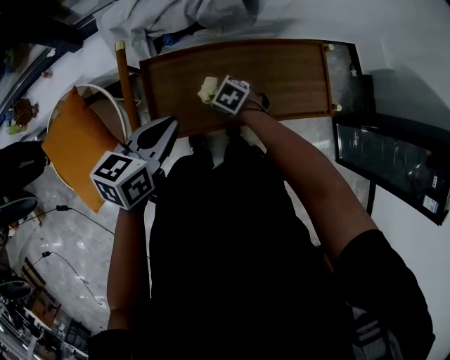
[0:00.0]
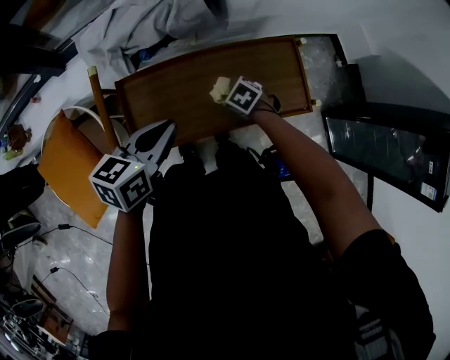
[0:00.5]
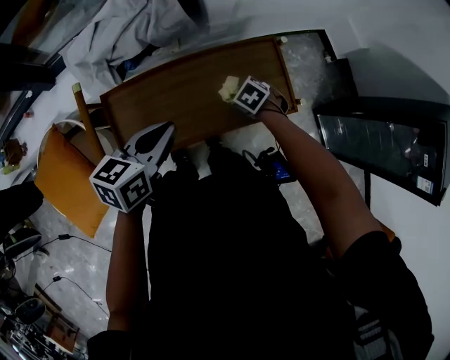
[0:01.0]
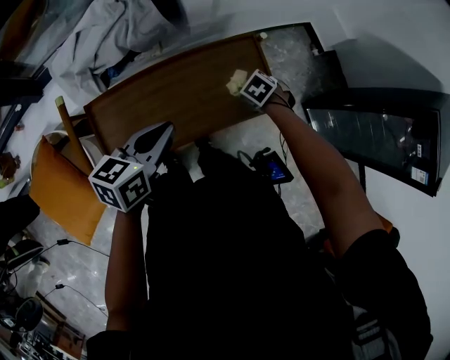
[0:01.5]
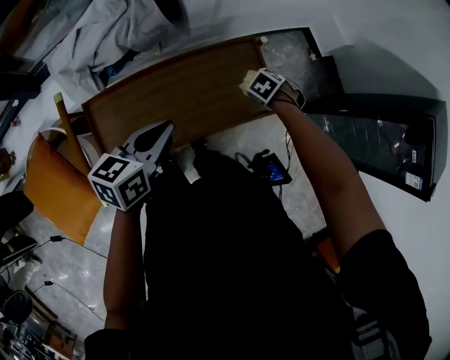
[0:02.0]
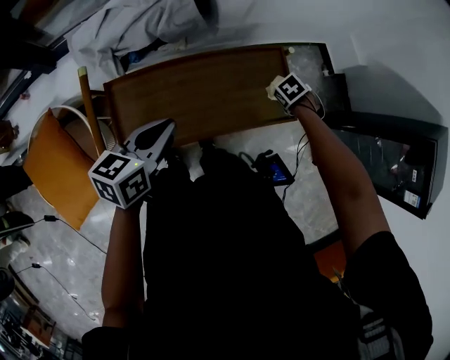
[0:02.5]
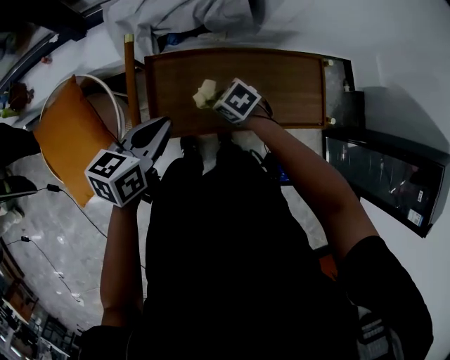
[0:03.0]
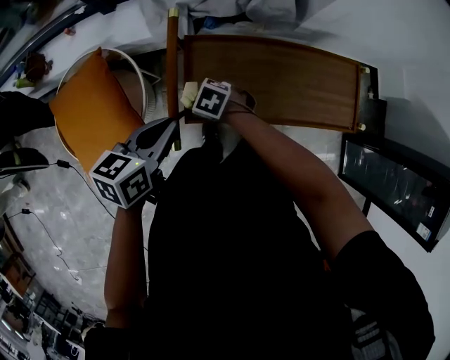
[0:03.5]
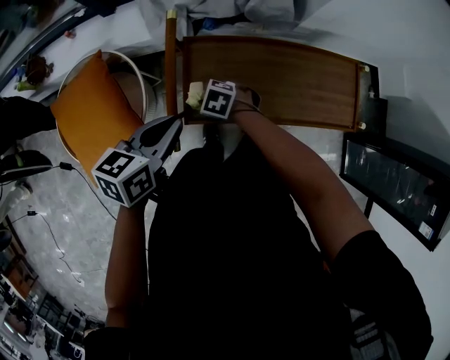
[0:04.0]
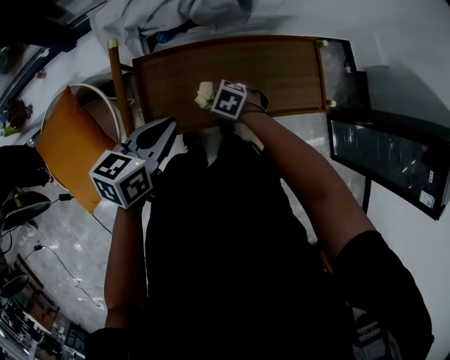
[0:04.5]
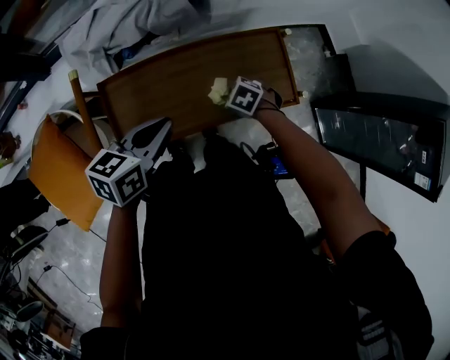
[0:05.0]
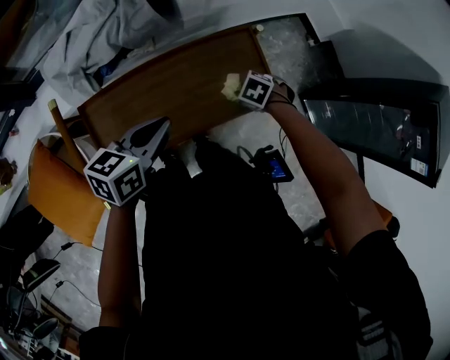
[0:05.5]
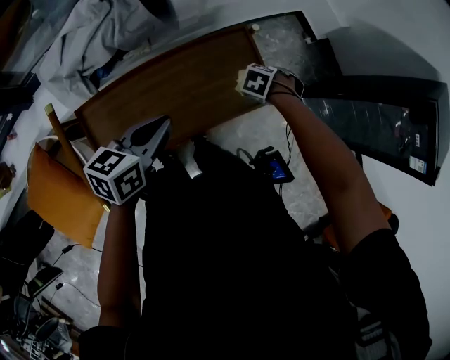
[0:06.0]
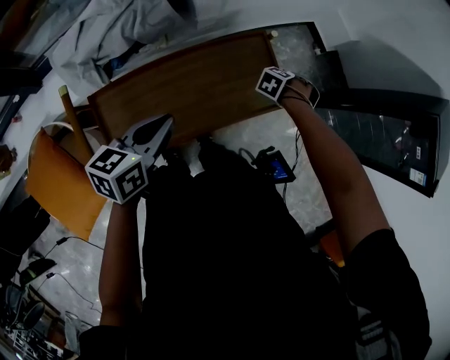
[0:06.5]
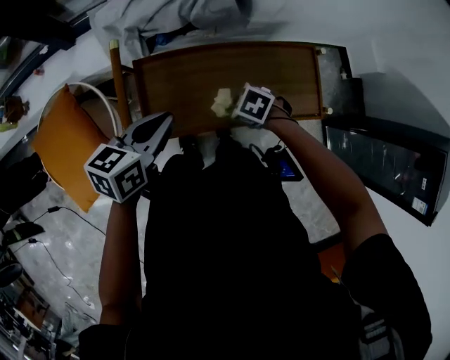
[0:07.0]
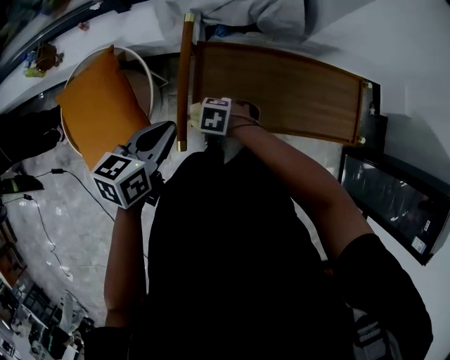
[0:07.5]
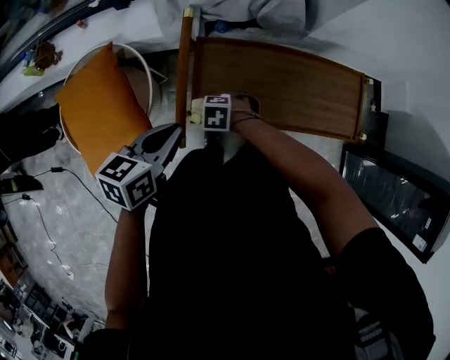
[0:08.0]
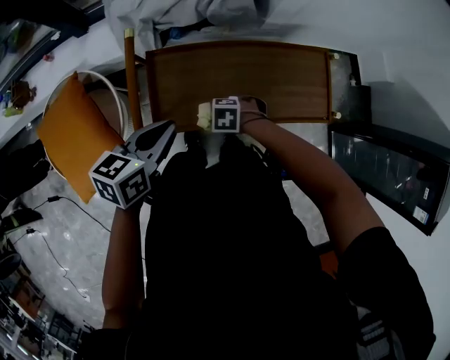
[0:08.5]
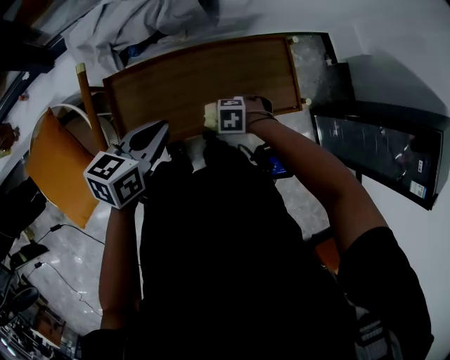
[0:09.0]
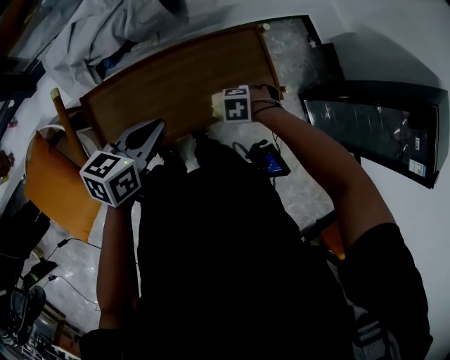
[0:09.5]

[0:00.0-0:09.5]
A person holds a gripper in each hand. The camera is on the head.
0:00.0 to 0:02.0: The right gripper shifts by about 35 cm, and changes its angle by some 20 degrees. Meanwhile the left gripper shifts by some 20 cm.
0:02.0 to 0:04.0: The right gripper shifts by some 50 cm, and rotates some 40 degrees, while the left gripper changes place by roughly 30 cm.
0:04.0 to 0:05.5: The right gripper ends up about 50 cm from where it was, and swivels some 30 degrees, while the left gripper changes place by about 30 cm, and rotates roughly 20 degrees.
0:05.5 to 0:07.5: The right gripper shifts by about 50 cm, and changes its angle by roughly 40 degrees, while the left gripper moves some 30 cm, and rotates roughly 30 degrees.
0:07.5 to 0:09.5: The right gripper shifts by about 40 cm. The left gripper ends up about 30 cm from where it was, and changes its angle by approximately 30 degrees.

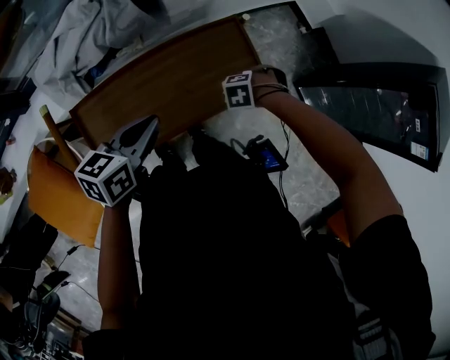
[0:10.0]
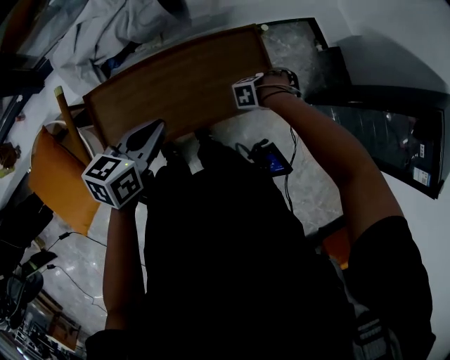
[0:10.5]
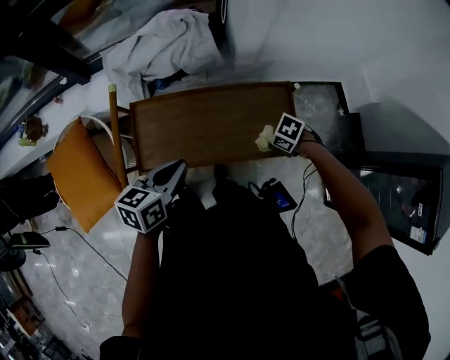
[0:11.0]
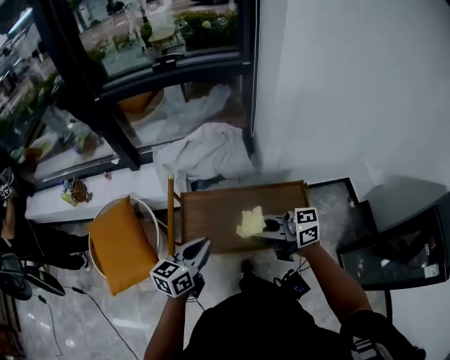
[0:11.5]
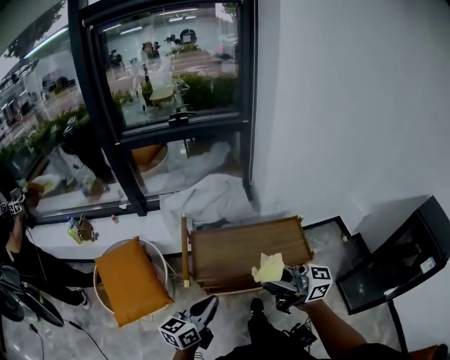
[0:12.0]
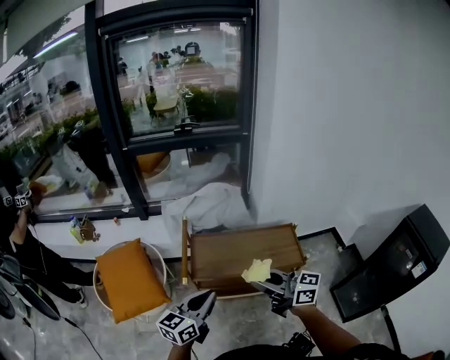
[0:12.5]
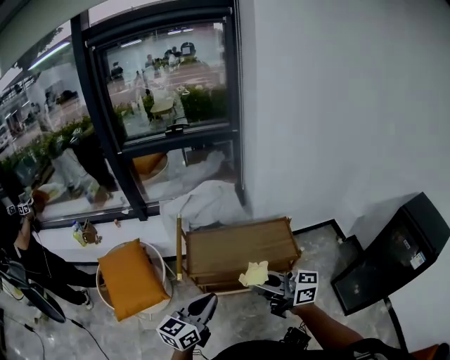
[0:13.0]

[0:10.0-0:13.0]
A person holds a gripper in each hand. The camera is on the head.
0:10.0 to 0:11.5: The right gripper travels upward by some 40 cm, and angles its fingers upward, by roughly 90 degrees. The left gripper moves roughly 20 cm, and changes its angle by some 30 degrees.
0:11.5 to 0:13.0: The grippers both shift backward and upward by about 20 cm.

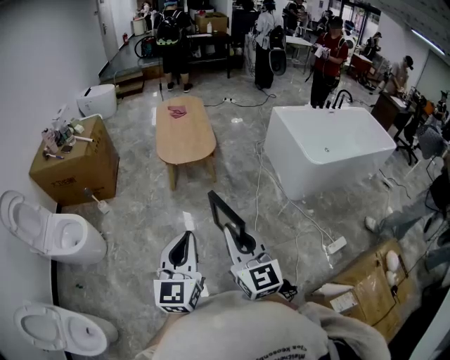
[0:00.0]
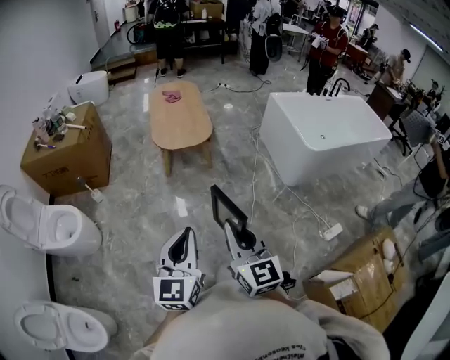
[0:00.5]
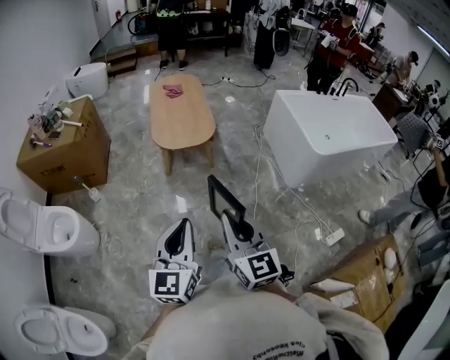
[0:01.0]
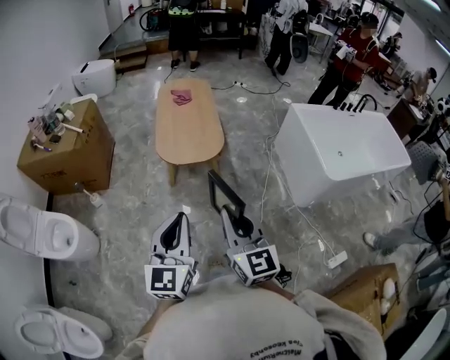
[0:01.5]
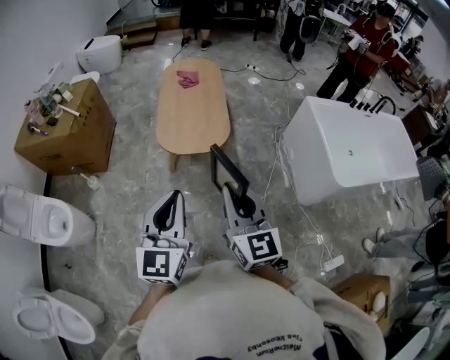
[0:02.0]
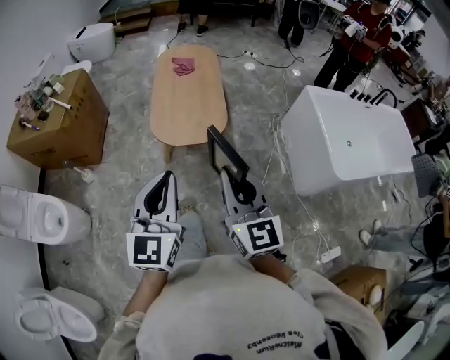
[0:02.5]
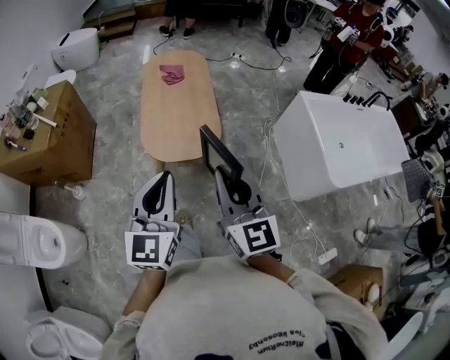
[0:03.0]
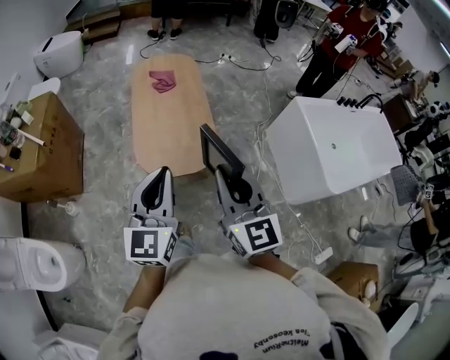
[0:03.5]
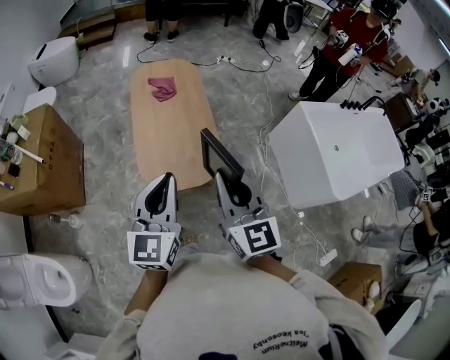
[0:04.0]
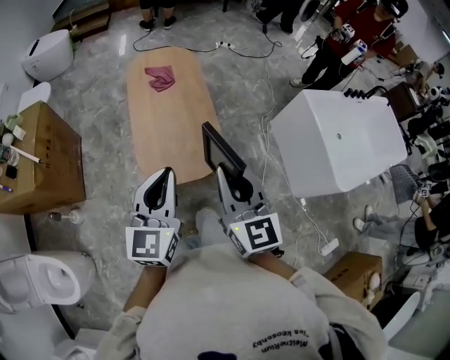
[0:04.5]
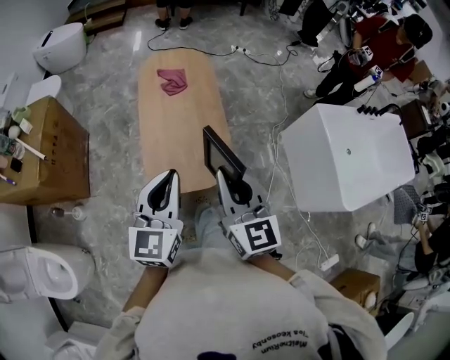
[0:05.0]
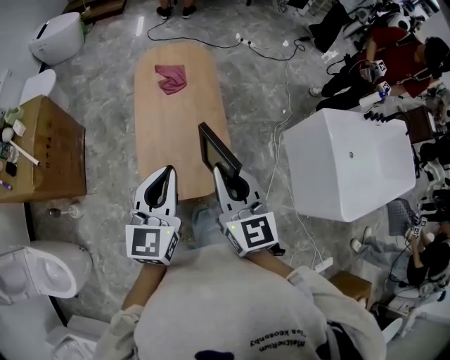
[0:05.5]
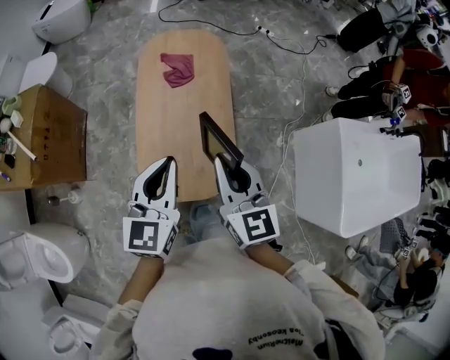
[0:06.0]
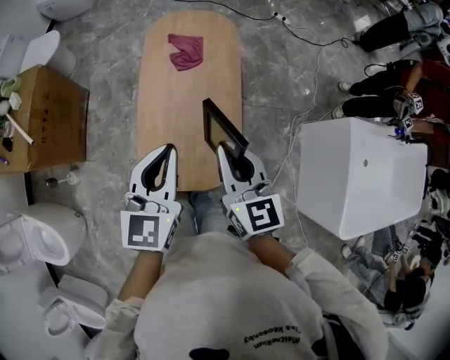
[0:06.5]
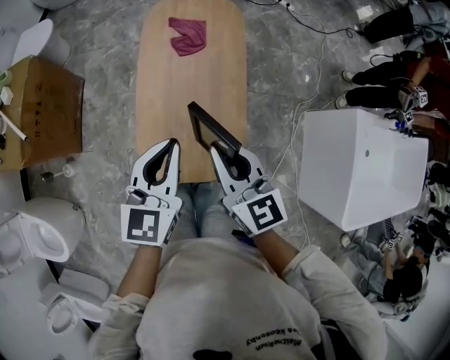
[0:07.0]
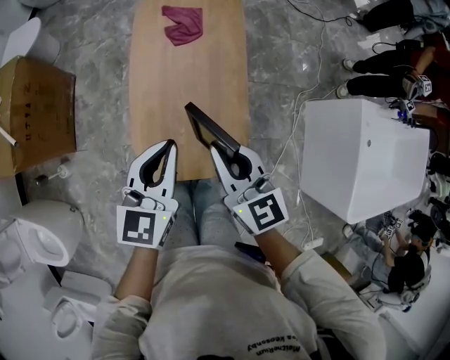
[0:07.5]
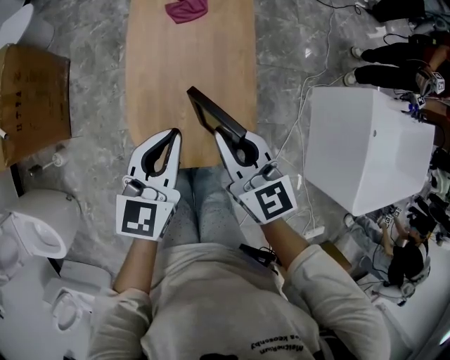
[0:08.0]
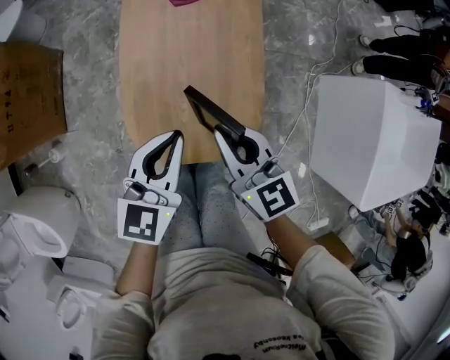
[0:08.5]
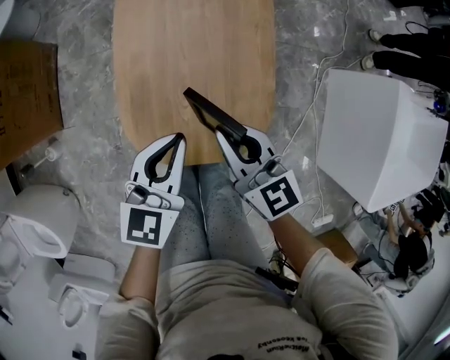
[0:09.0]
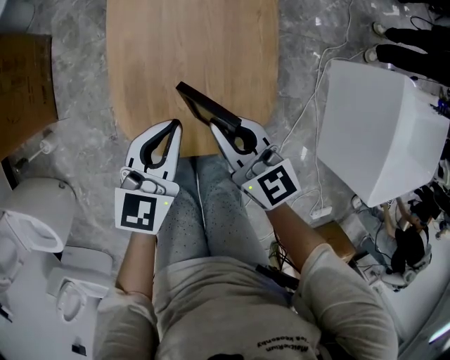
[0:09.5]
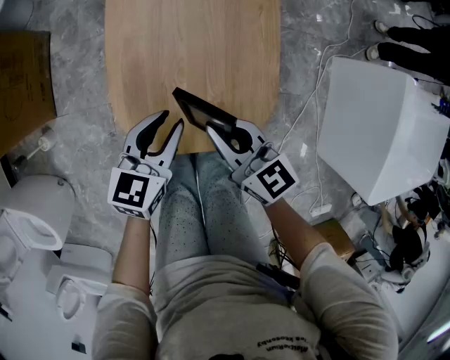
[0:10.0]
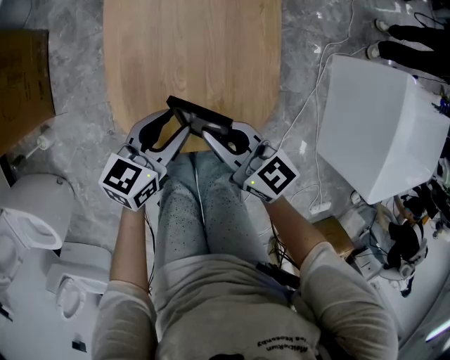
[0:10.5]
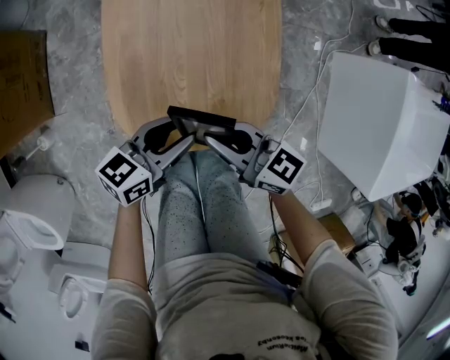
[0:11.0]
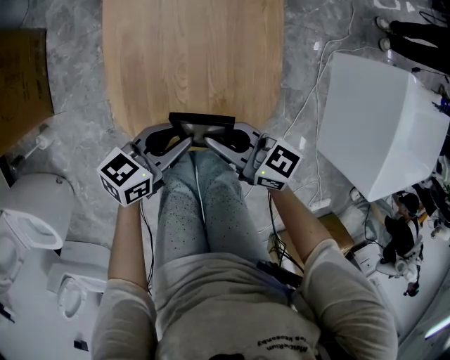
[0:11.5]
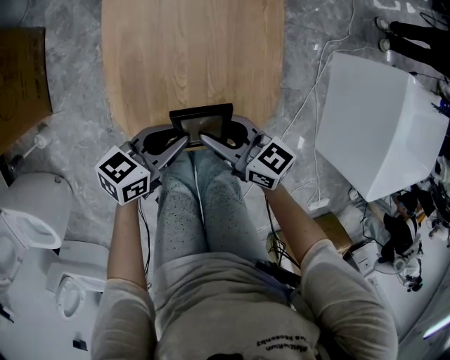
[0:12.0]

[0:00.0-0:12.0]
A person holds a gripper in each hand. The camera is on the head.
0:00.0 to 0:02.0: The grippers both shift forward by approximately 35 cm.
0:02.0 to 0:04.0: The grippers both shift forward by approximately 30 cm.
0:04.0 to 0:06.0: Both grippers travel together forward, some 25 cm.
0:06.0 to 0:08.0: The grippers both shift downward by roughly 15 cm.
0:08.0 to 0:10.0: Both grippers move downward, roughly 20 cm. The left gripper opens.
0:10.0 to 0:12.0: The right gripper moves downward, roughly 5 cm, and opens its fingers; the left gripper shifts by roughly 5 cm, and swivels about 30 degrees.

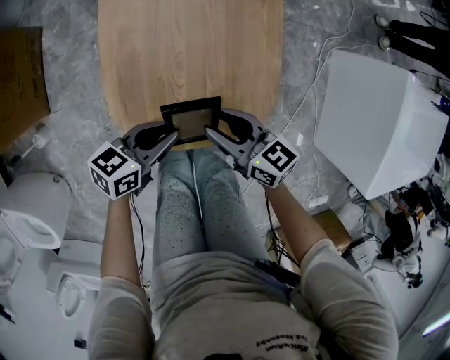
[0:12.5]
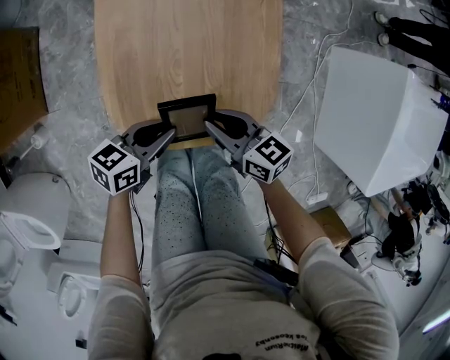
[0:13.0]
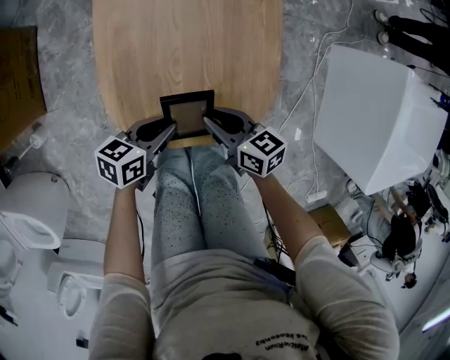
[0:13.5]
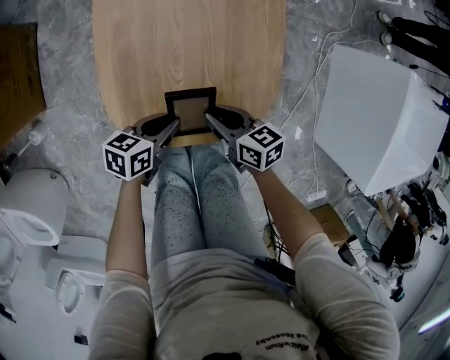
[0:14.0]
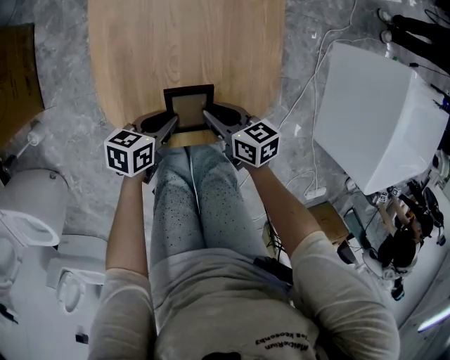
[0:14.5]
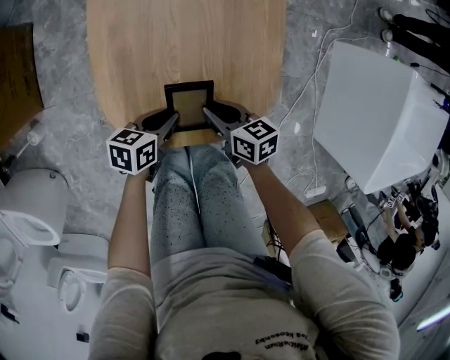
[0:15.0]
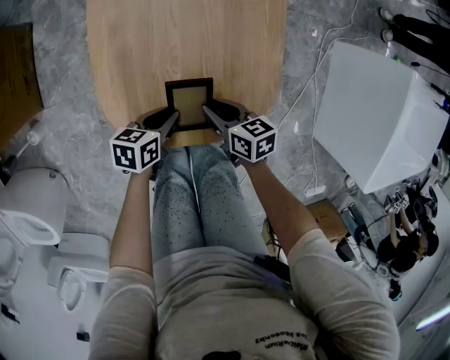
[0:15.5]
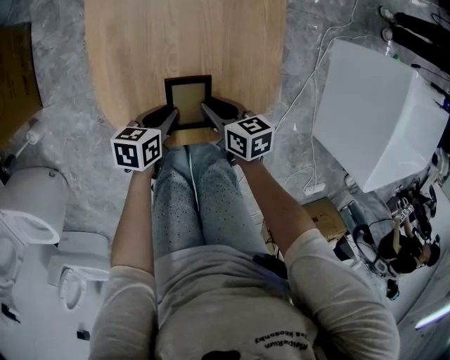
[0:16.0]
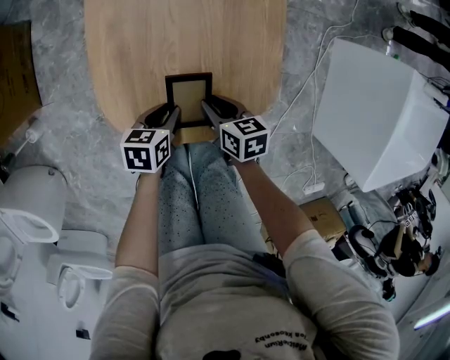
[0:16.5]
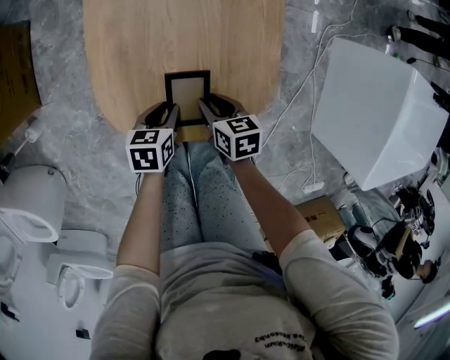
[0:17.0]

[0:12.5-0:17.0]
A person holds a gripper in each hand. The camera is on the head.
0:12.5 to 0:14.5: Both grippers move downward, roughly 10 cm. The right gripper closes.
0:14.5 to 0:17.0: The left gripper changes its angle by about 20 degrees.
